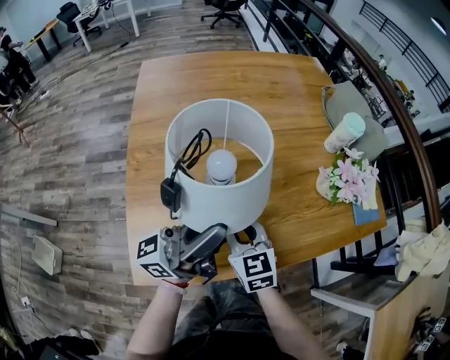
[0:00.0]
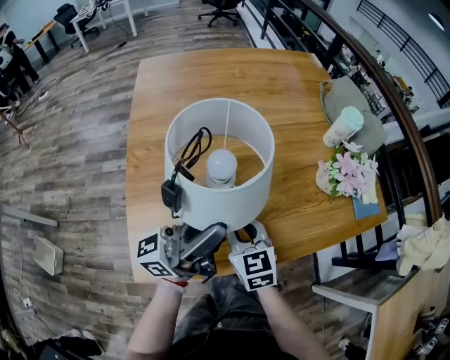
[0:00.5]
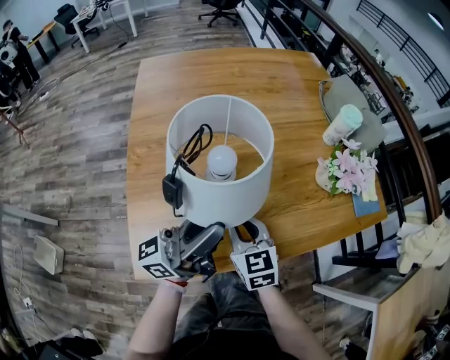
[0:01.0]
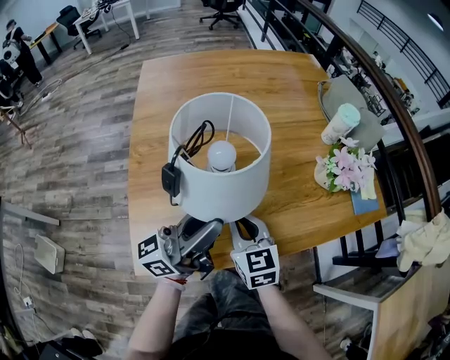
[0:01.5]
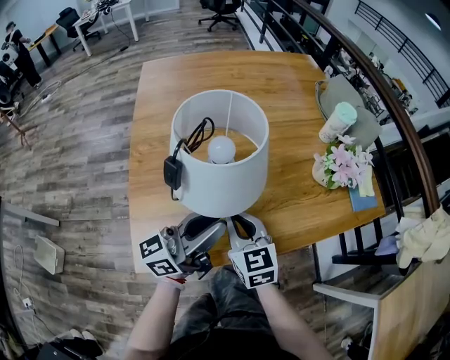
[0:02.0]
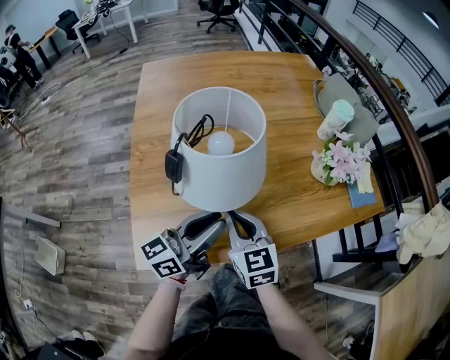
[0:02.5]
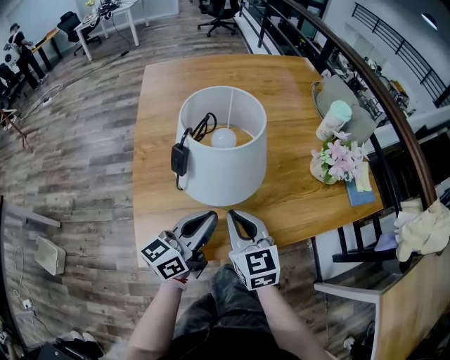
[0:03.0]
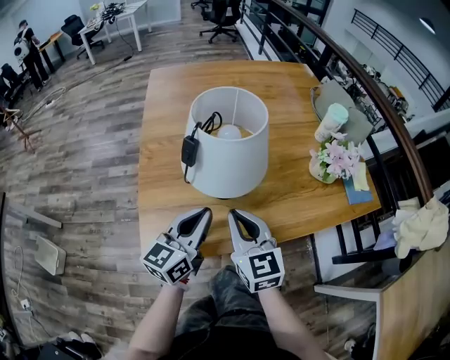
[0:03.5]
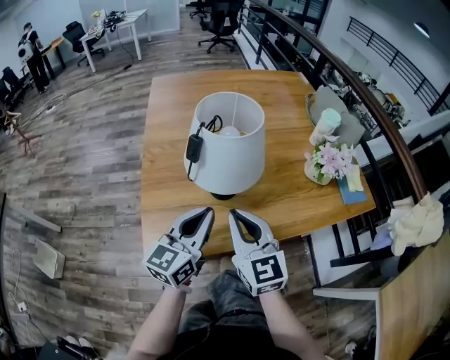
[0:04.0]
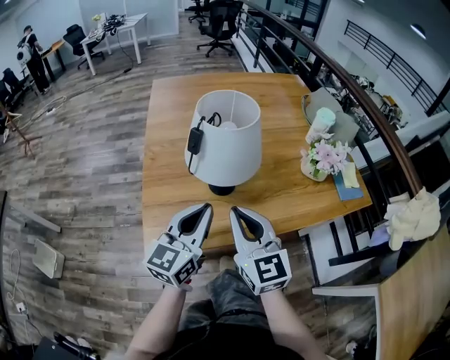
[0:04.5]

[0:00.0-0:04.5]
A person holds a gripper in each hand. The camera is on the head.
0:00.0 to 0:02.0: The left gripper shifts some 5 cm downward.
0:02.0 to 0:04.5: The left gripper heads backward, covering some 5 cm, rotates approximately 40 degrees, and closes; the right gripper heads upward and backward, covering approximately 15 cm.

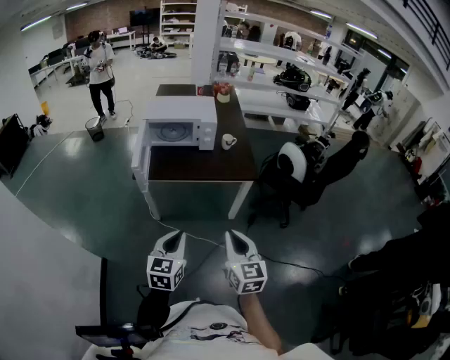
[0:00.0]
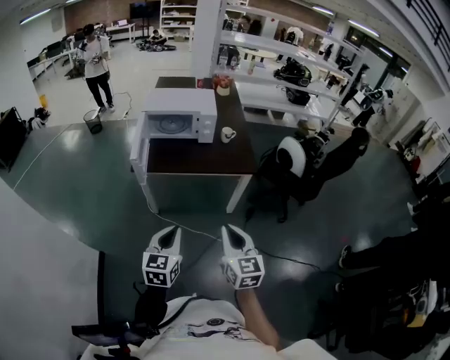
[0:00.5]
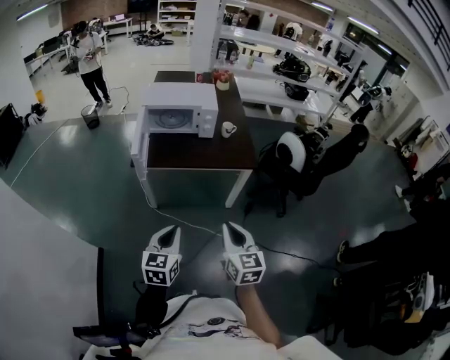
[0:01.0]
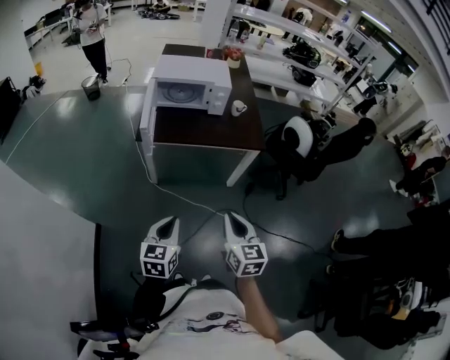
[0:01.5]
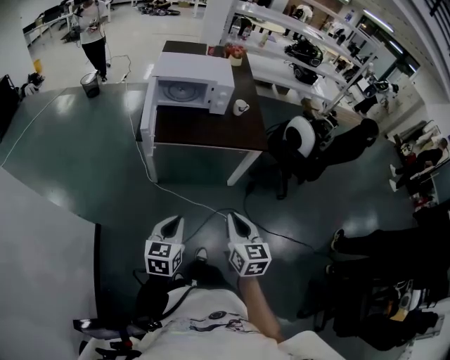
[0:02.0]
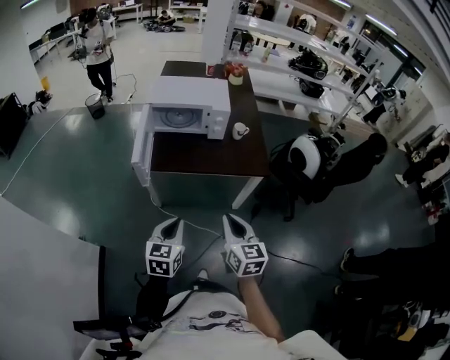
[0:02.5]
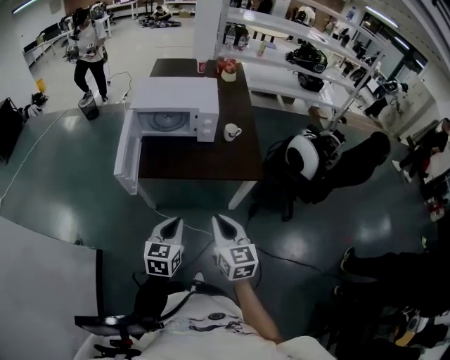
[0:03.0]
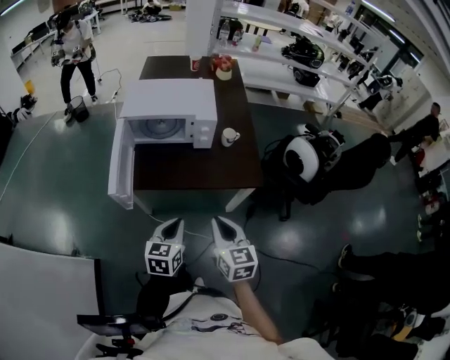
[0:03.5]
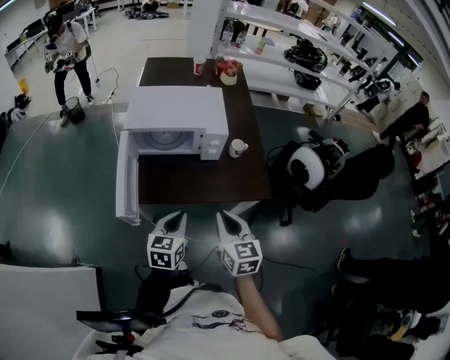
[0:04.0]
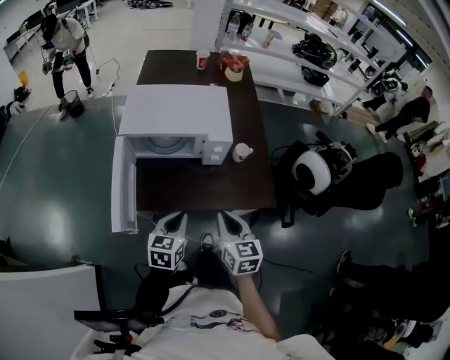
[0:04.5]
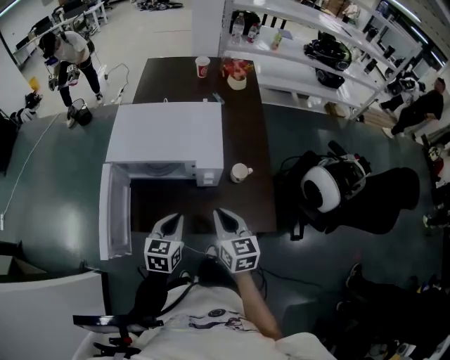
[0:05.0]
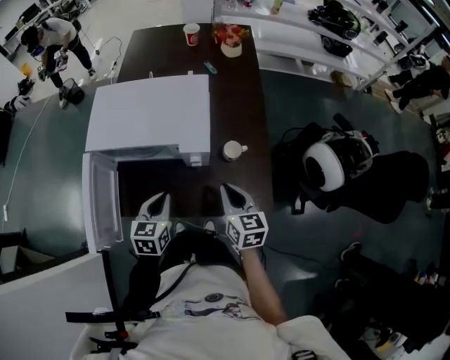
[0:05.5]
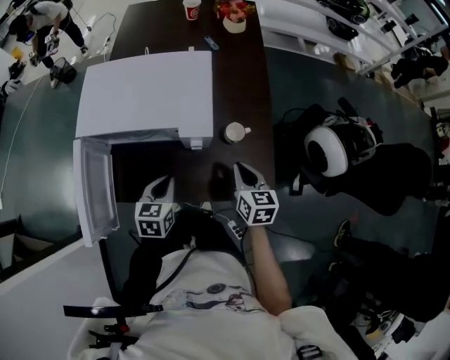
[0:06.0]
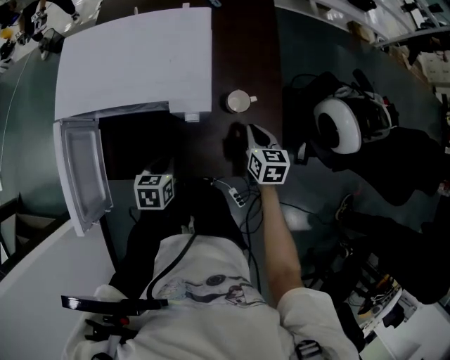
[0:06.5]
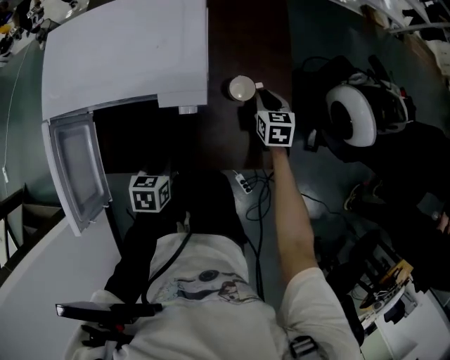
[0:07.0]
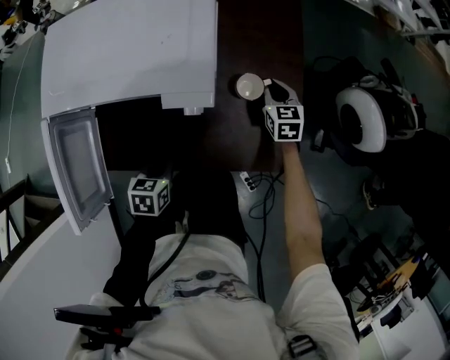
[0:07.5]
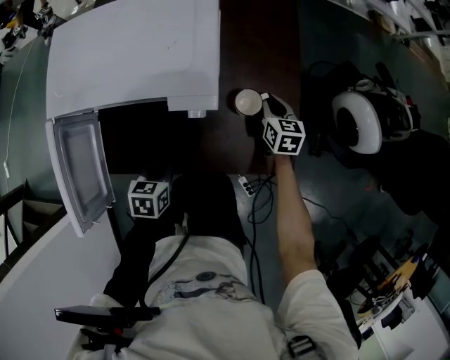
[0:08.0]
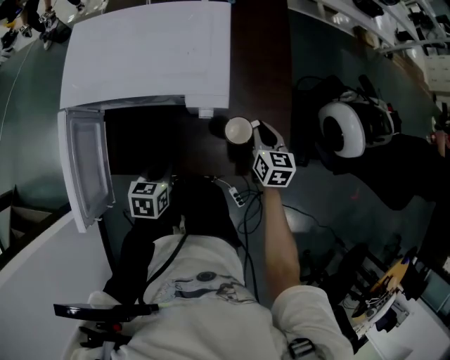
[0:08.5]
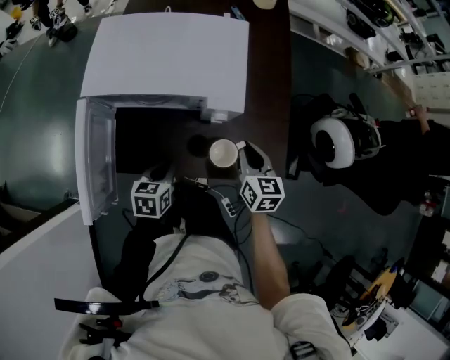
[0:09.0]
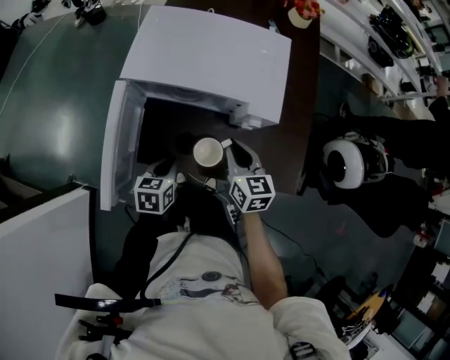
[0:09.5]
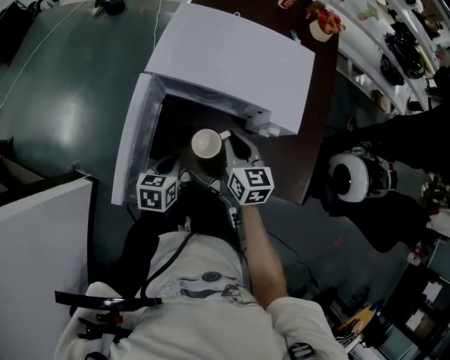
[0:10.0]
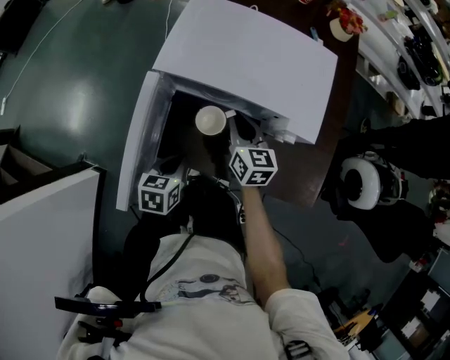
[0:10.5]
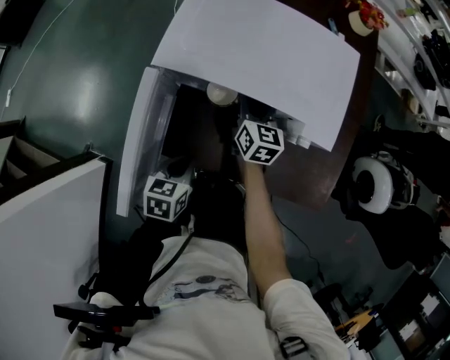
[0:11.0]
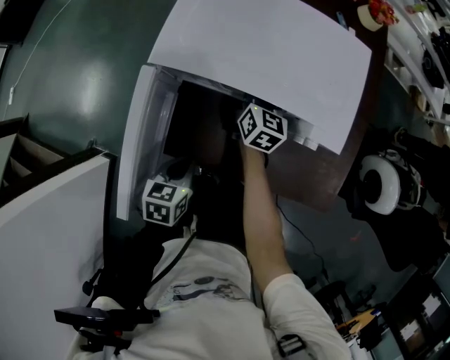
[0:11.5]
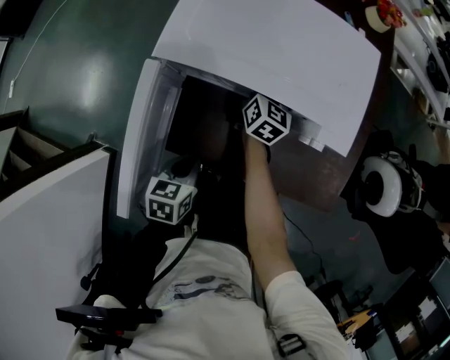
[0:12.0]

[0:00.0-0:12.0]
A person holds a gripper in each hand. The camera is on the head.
0:00.0 to 0:02.0: The left gripper moves downward and to the left, about 10 cm. Meanwhile the right gripper changes place by approximately 5 cm.
0:02.0 to 0:04.0: The grippers both shift forward by roughly 30 cm.
0:04.0 to 0:06.0: The right gripper is displaced forward, to the right and downward by some 30 cm. The left gripper moves forward and downward, roughly 20 cm.
0:06.0 to 0:08.0: The right gripper shifts some 20 cm downward, forward and to the right, while the left gripper moves downward and backward, some 10 cm, and rotates approximately 20 degrees.
0:08.0 to 0:10.0: The left gripper goes roughly 10 cm to the left, and changes its angle by about 20 degrees. The right gripper travels to the left and upward by approximately 30 cm, and rotates some 20 degrees.
0:10.0 to 0:12.0: The right gripper is displaced forward and downward by roughly 20 cm, and turns by roughly 30 degrees.

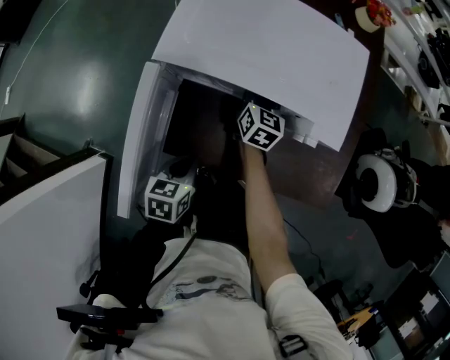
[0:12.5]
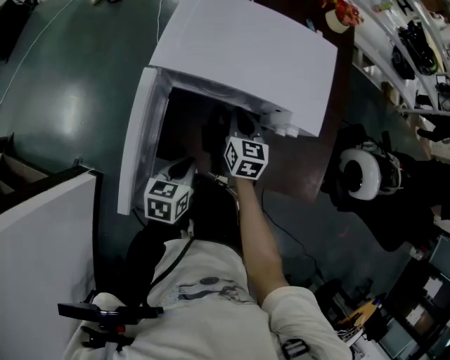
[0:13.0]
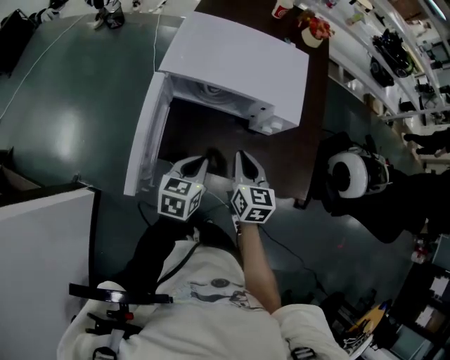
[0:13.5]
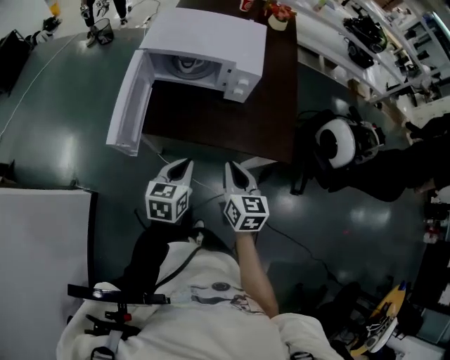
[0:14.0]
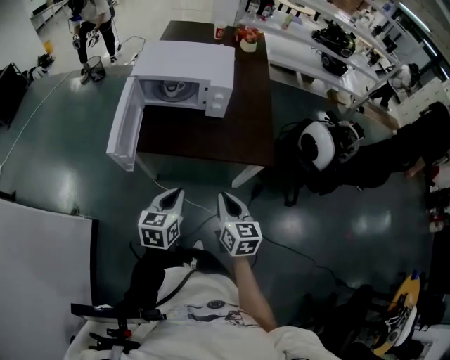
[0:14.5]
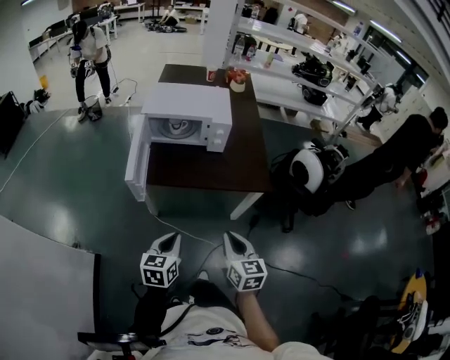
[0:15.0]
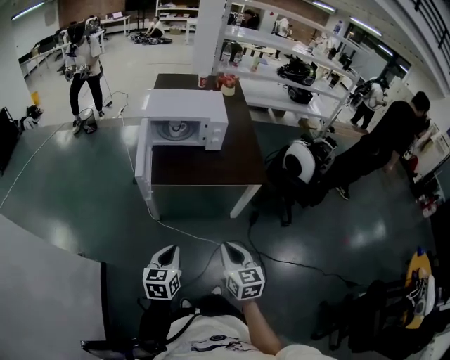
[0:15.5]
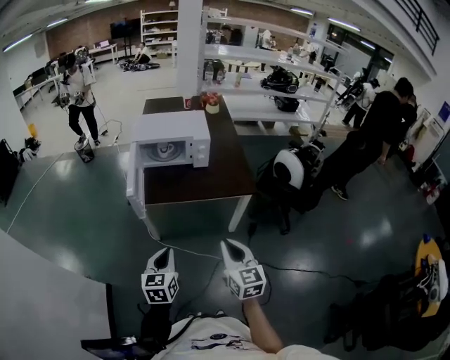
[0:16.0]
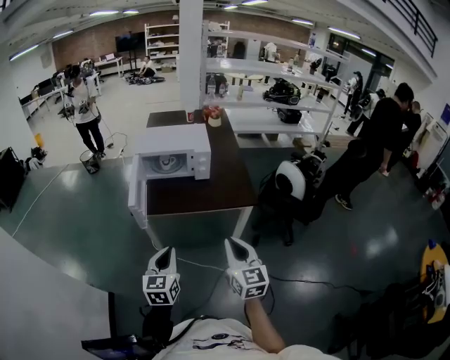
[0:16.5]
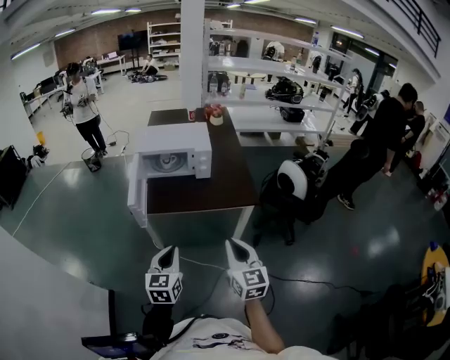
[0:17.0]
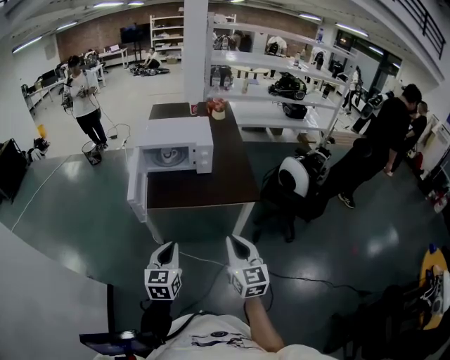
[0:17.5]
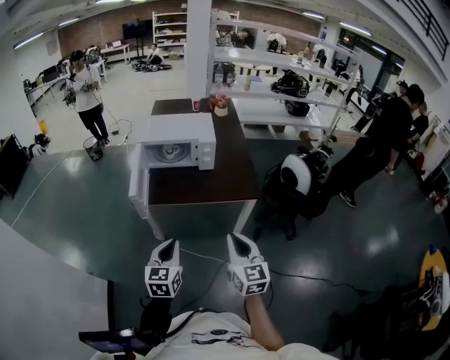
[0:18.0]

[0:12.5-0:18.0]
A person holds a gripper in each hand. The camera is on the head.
0:12.5 to 0:14.5: The right gripper shifts roughly 50 cm backward, and closes; the left gripper is displaced backward, to the right and upward by approximately 25 cm, and rotates approximately 20 degrees.
0:14.5 to 0:16.0: The left gripper is displaced backward and to the left by about 15 cm; the right gripper shifts approximately 20 cm backward and upward.
0:16.0 to 0:18.0: The grippers stay close to where they were, moving slightly.

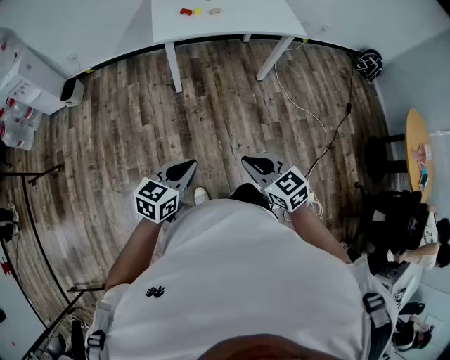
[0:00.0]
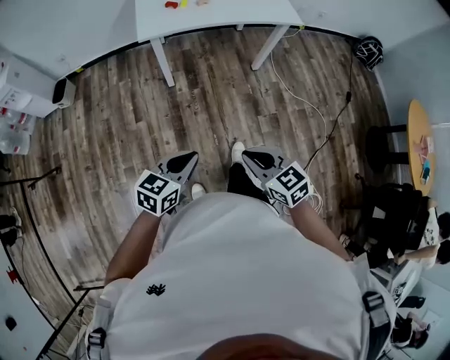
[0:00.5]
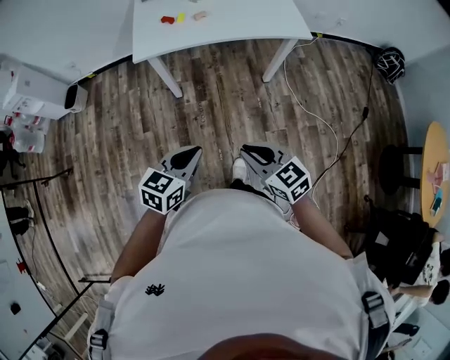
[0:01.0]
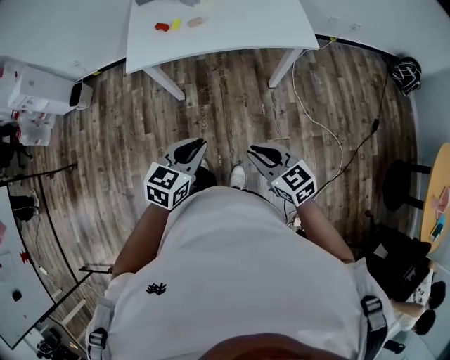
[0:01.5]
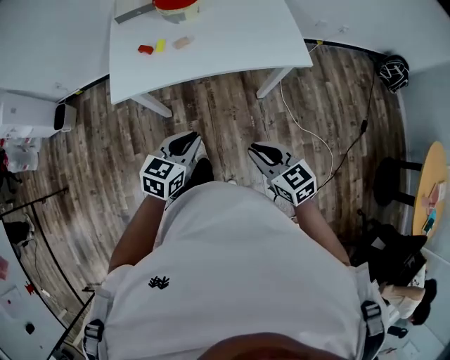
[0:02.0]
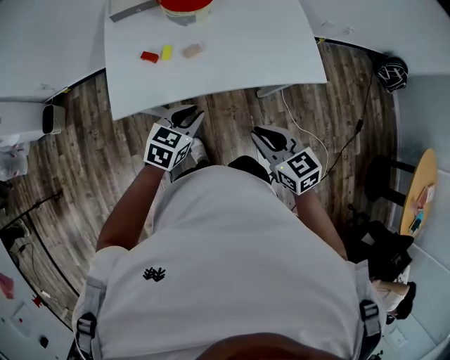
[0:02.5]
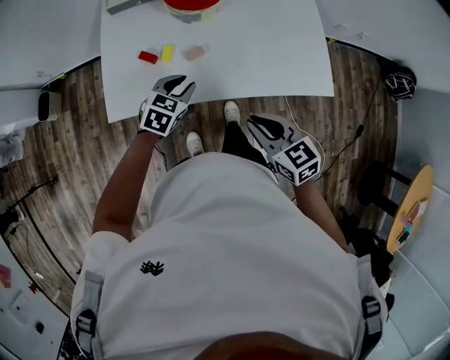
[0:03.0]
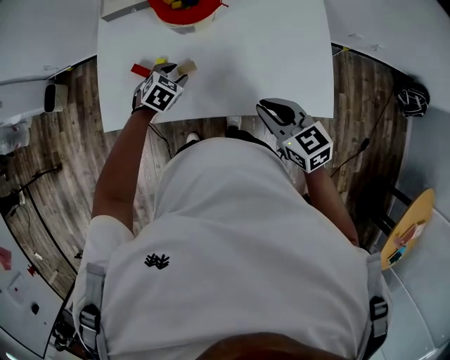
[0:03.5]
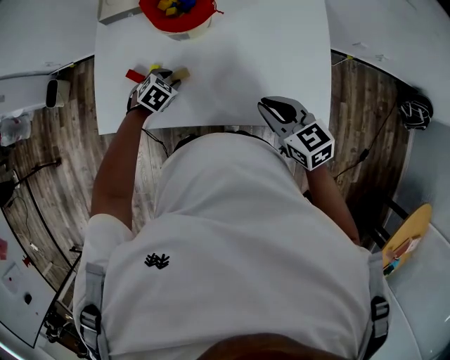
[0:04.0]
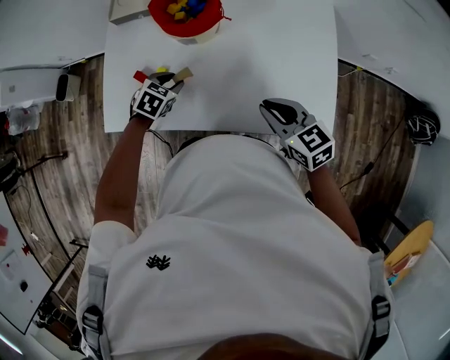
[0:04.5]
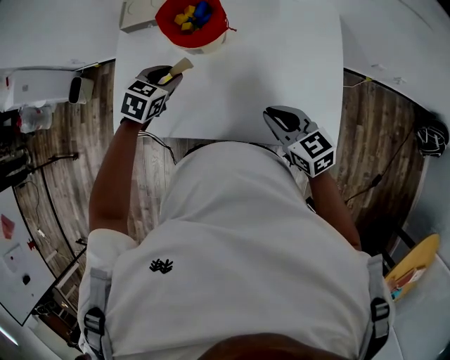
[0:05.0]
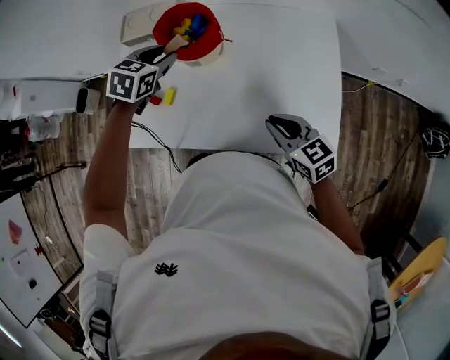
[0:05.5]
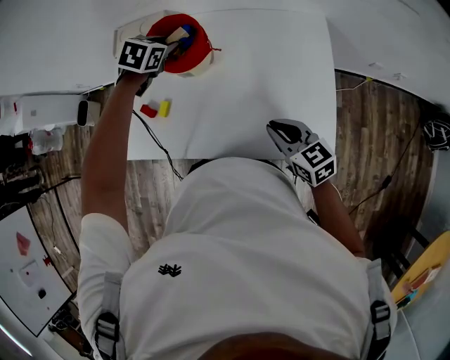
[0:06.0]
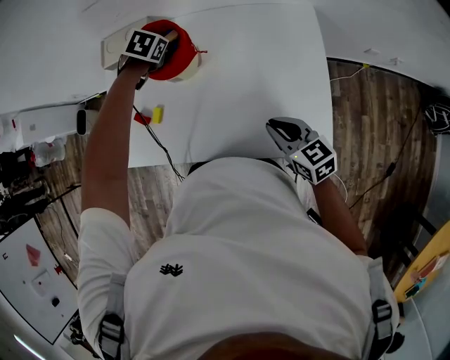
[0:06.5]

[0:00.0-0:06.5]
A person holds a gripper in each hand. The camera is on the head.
0:00.0 to 0:02.0: The two grippers travel together, forward and to the right, roughly 40 cm.
0:02.0 to 0:04.5: The two grippers go roughly 40 cm forward. The left gripper changes its angle by some 30 degrees.
0:04.5 to 0:06.5: The right gripper shifts some 5 cm to the right; the left gripper heads forward, to the right and upward, covering approximately 25 cm.
